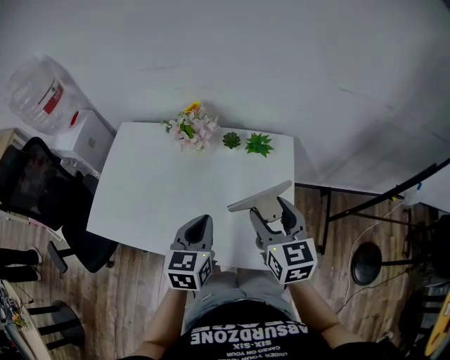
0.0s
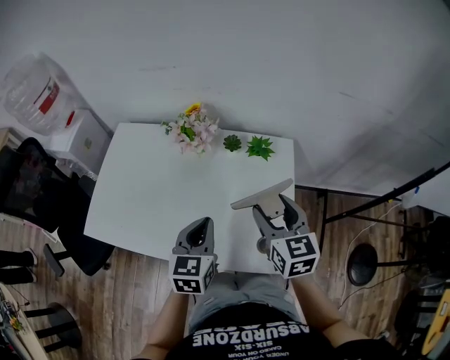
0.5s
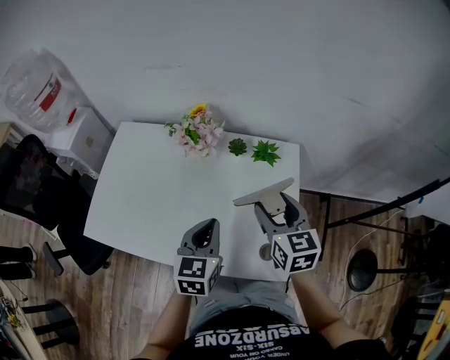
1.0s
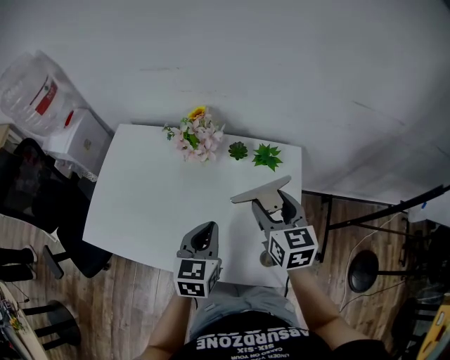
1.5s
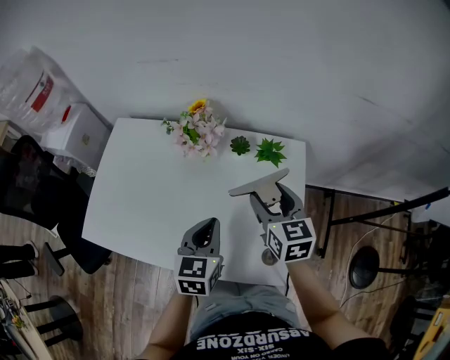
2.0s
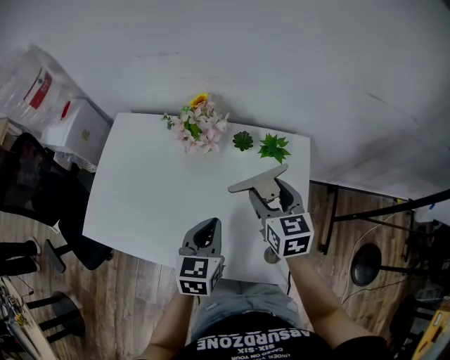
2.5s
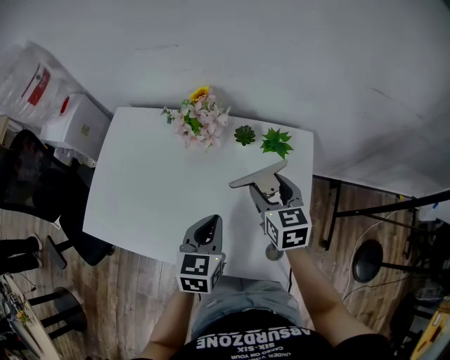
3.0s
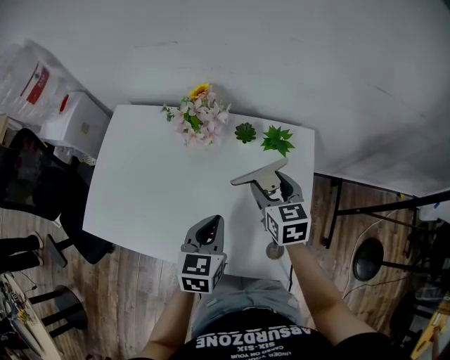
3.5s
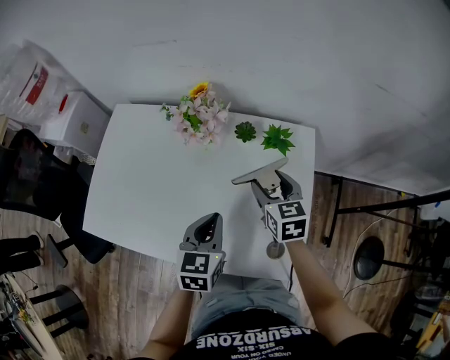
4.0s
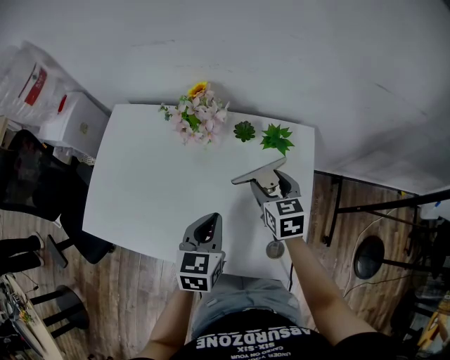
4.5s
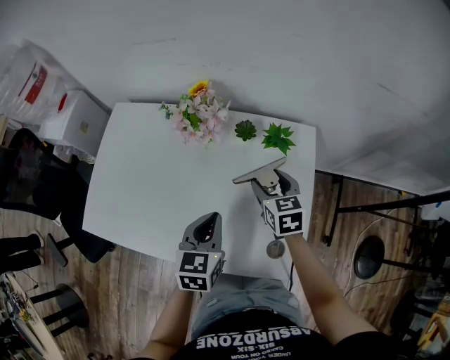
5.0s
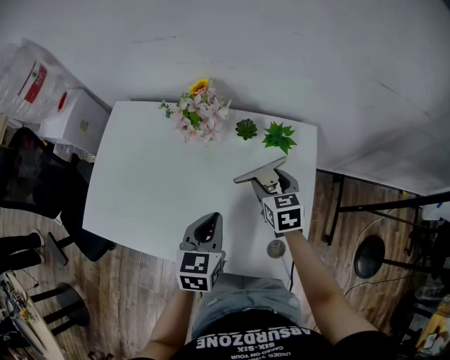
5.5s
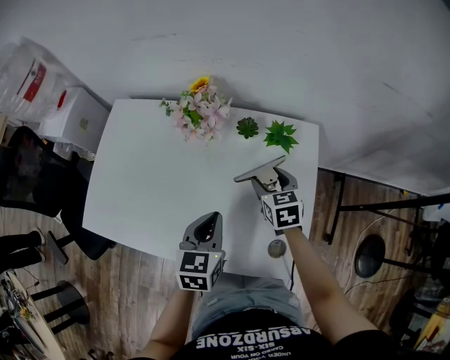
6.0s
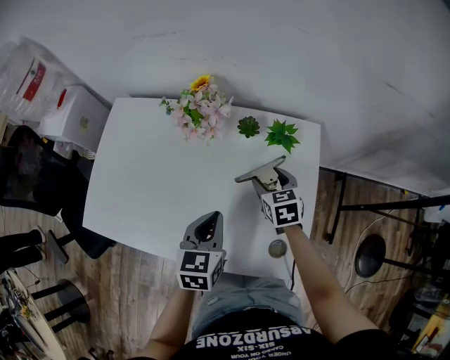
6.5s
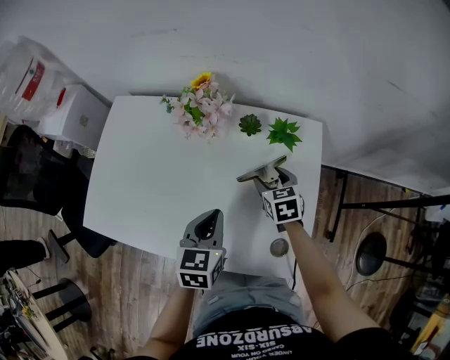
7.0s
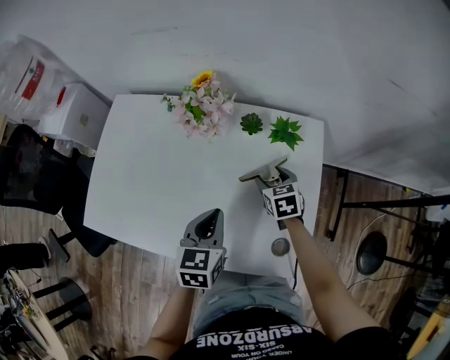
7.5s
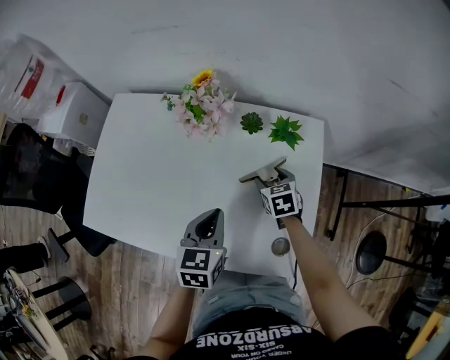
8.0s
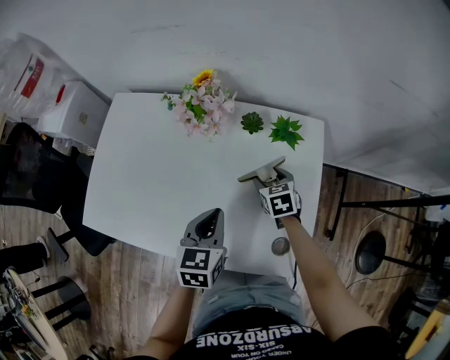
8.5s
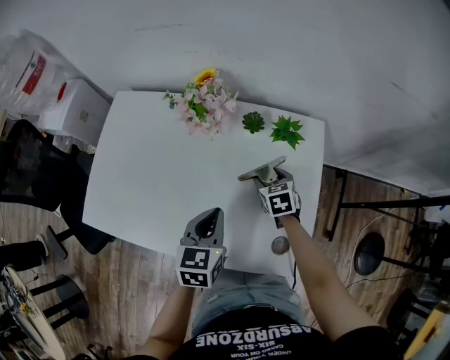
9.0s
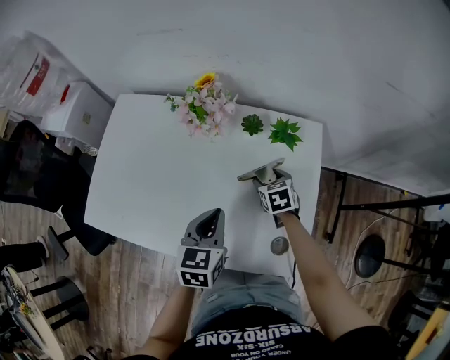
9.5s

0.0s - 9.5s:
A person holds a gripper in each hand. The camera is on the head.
0.0s - 2.0s: The left gripper goes roughly 5 cm forward. The right gripper travels forward and downward by roughly 15 cm.
2.0s - 4.0s: The right gripper travels downward by roughly 10 cm.
4.0s - 5.5s: There are only small adjustments of the grippers.
5.5s - 7.5s: The right gripper is displaced downward by about 10 cm.
7.5s - 9.5s: There are only small adjustments of the grippers.

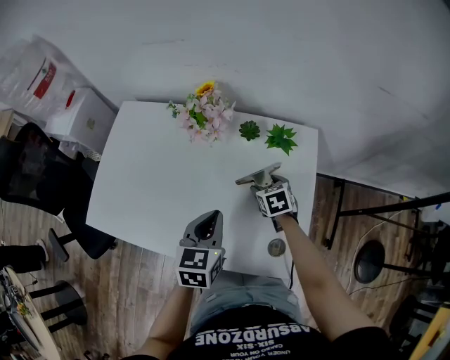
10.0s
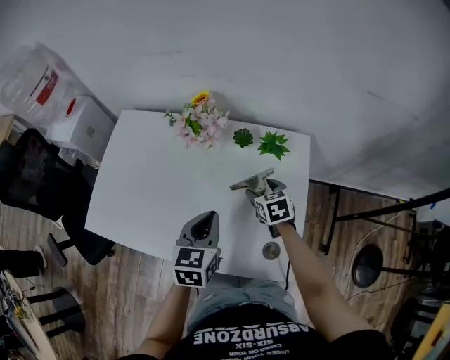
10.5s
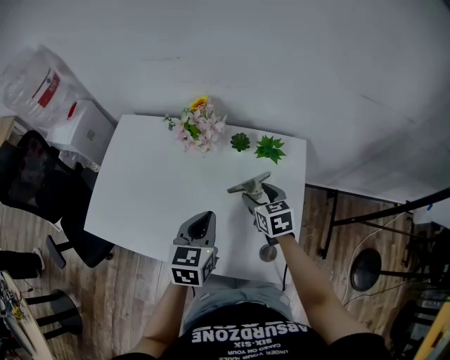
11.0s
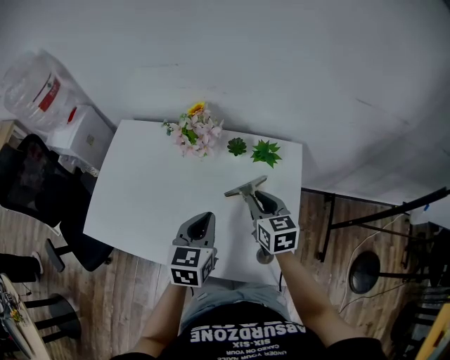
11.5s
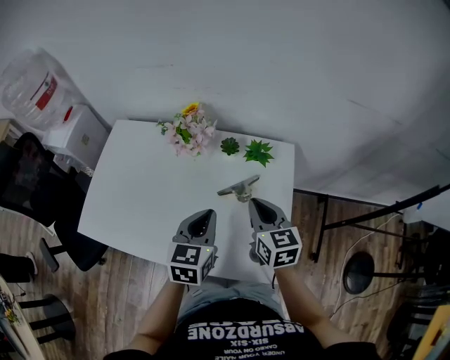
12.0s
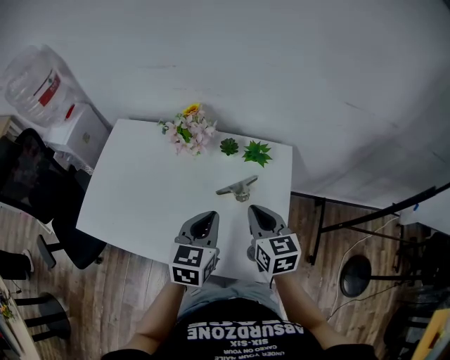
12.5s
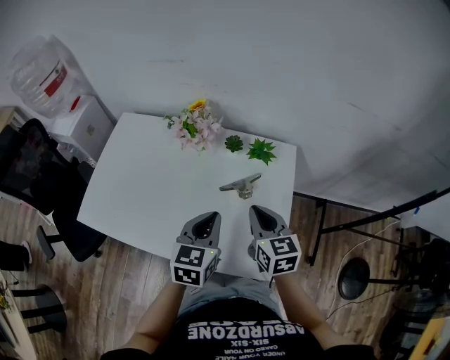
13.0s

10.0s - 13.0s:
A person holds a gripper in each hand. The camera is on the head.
10.0s - 11.5s: The right gripper moves upward, roughly 15 cm, rotates roughly 30 degrees, and closes up.
11.5s - 13.0s: The right gripper travels backward by approximately 10 cm. The left gripper changes place by approximately 5 cm.

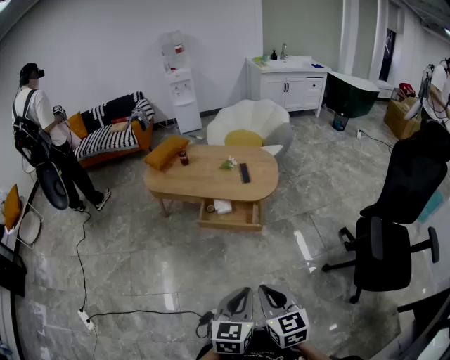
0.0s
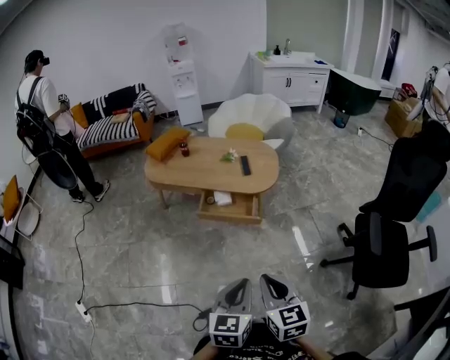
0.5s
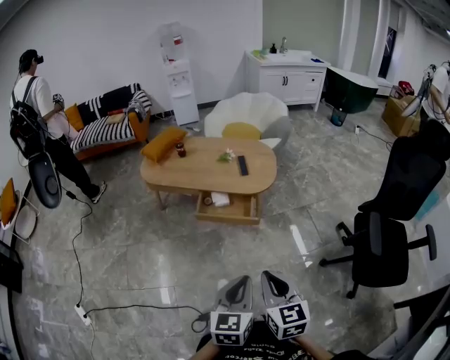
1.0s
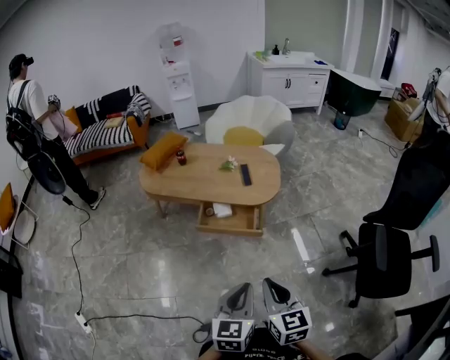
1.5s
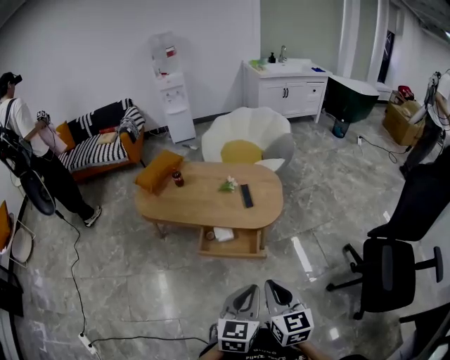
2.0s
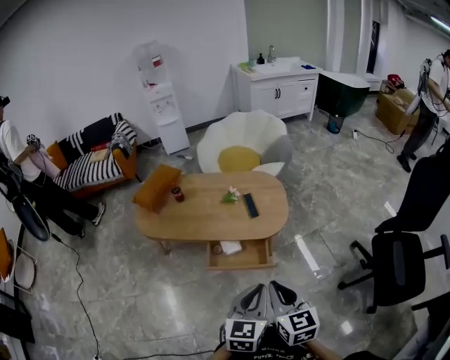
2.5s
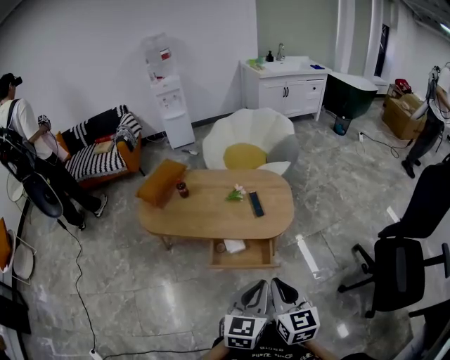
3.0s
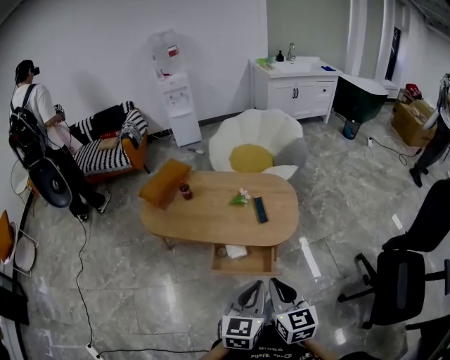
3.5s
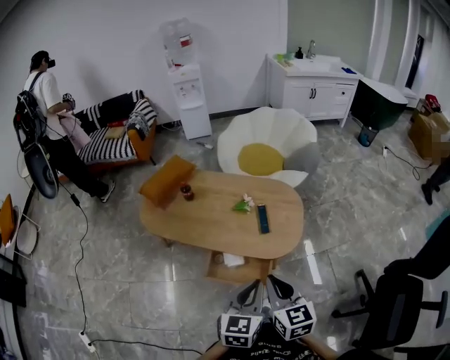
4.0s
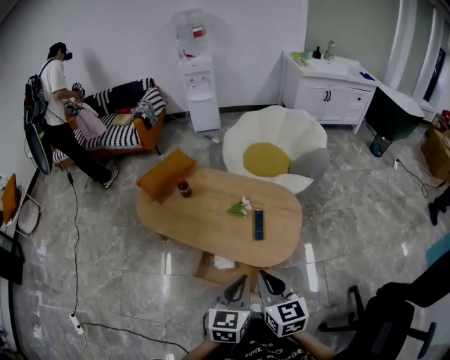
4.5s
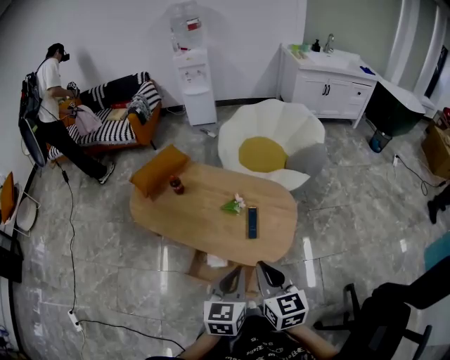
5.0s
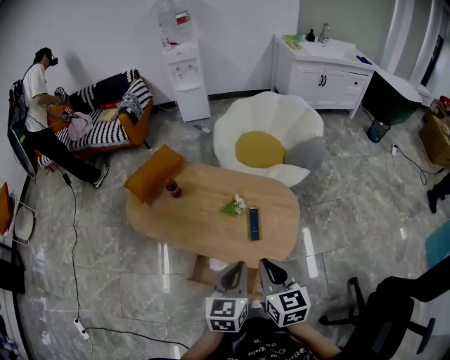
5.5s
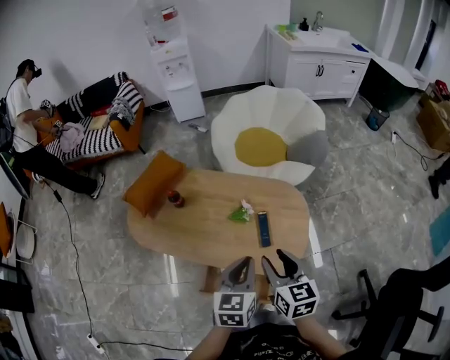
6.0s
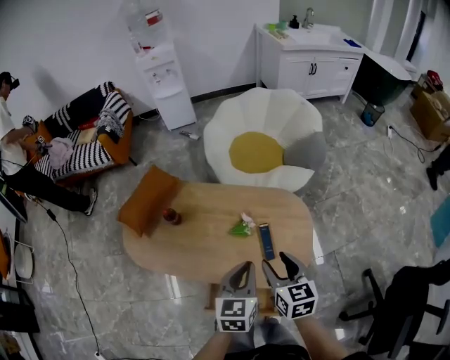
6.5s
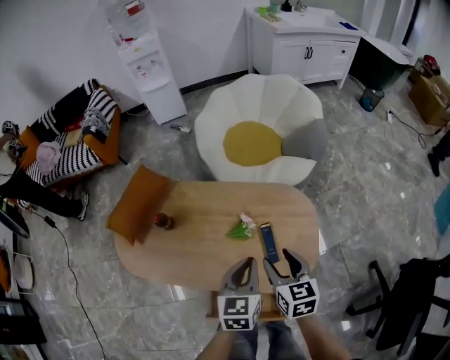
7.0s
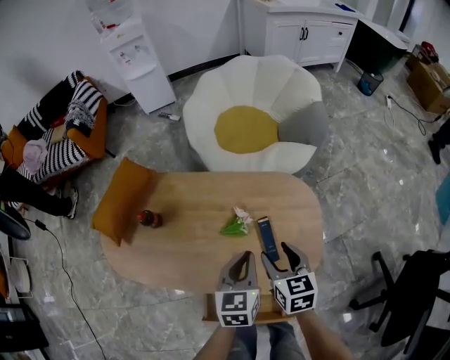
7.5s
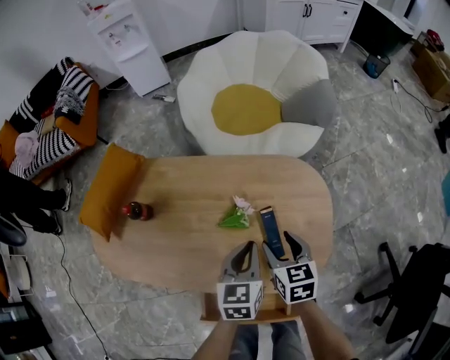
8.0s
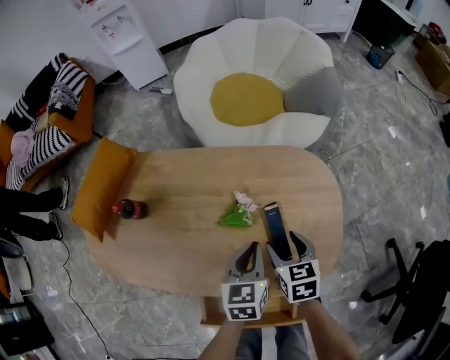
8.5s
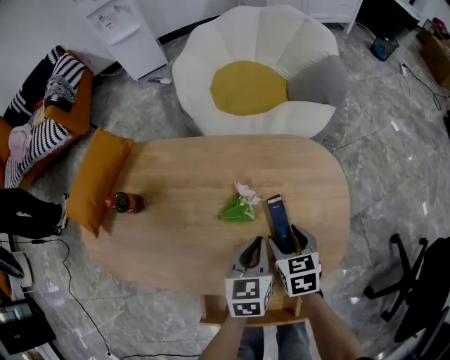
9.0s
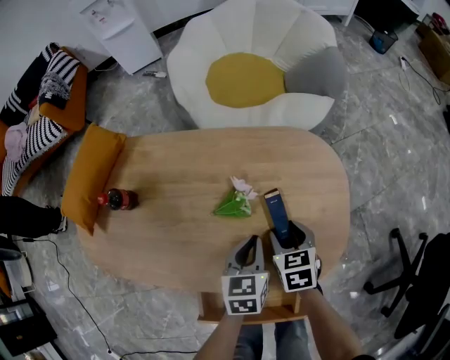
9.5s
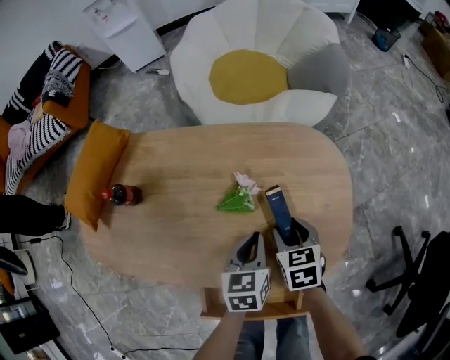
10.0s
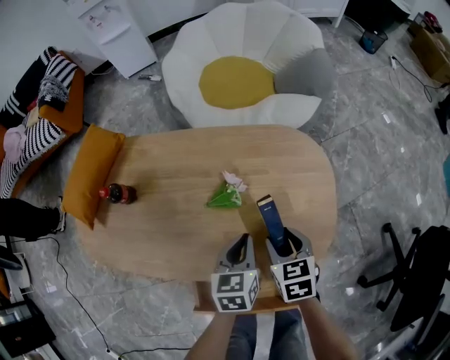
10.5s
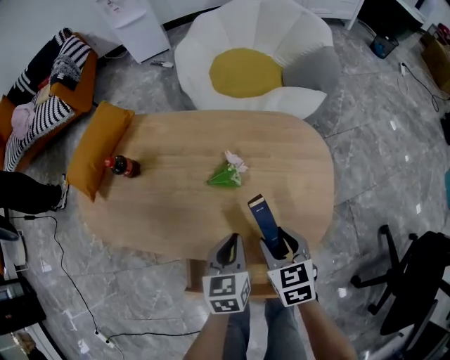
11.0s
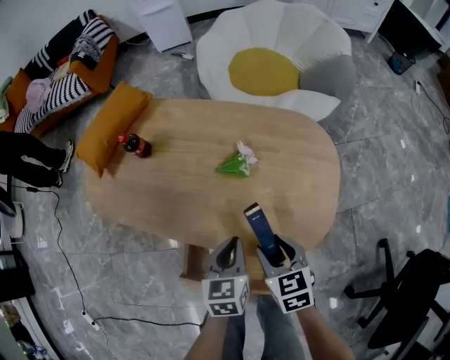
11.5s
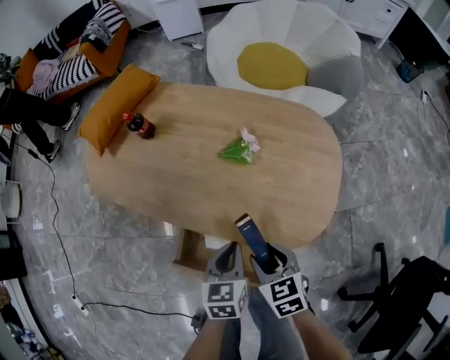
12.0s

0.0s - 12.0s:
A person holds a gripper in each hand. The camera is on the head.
0.0s - 2.0s: Both grippers move forward, about 20 cm.
2.0s - 4.0s: The grippers both shift forward by approximately 20 cm.
4.0s - 6.0s: Both grippers move forward, about 20 cm. The right gripper opens up.
6.0s - 8.0s: The two grippers go roughly 25 cm downward and forward.
8.0s - 10.0s: Both grippers travel together downward, approximately 10 cm.
10.0s - 12.0s: Both grippers travel together backward, some 20 cm. The right gripper rotates about 30 degrees.

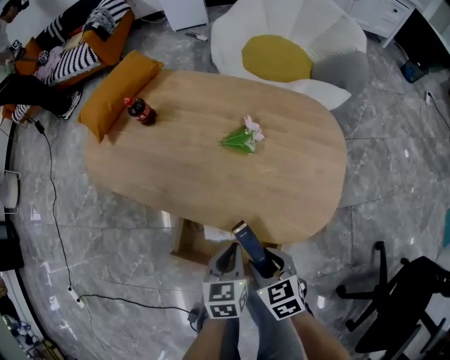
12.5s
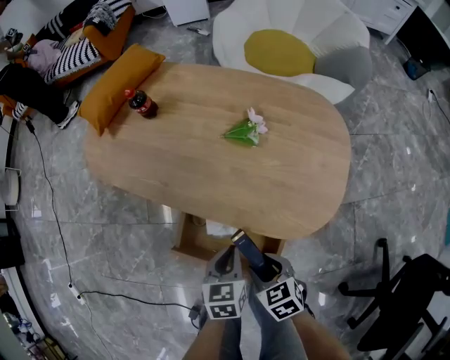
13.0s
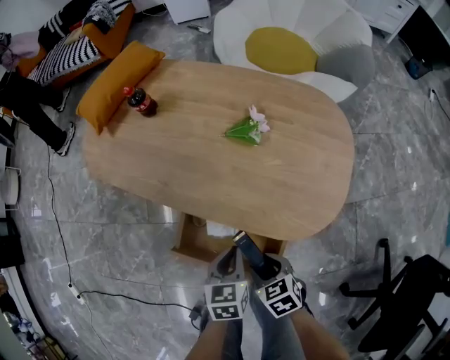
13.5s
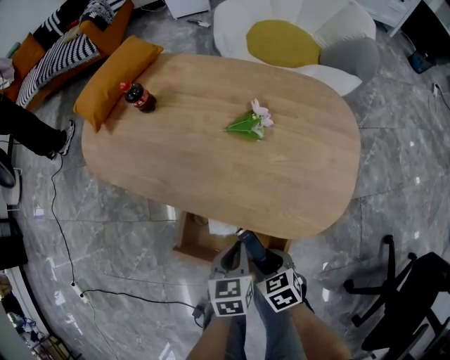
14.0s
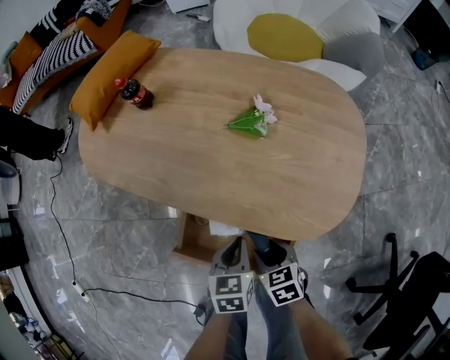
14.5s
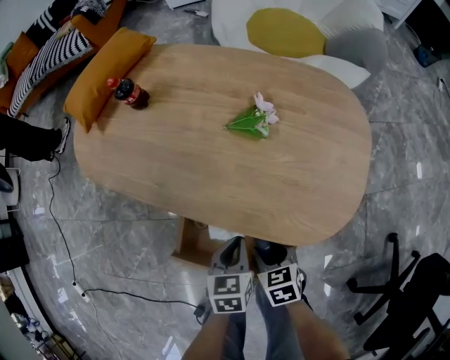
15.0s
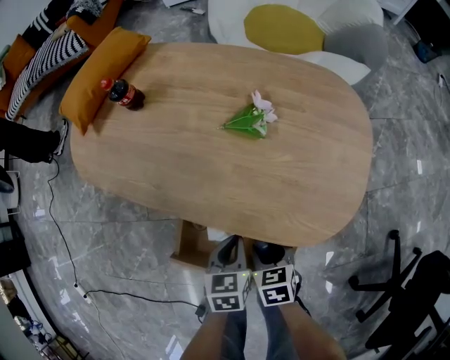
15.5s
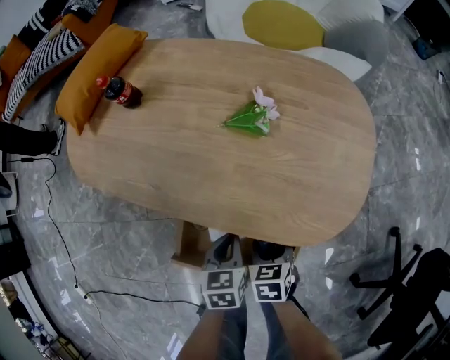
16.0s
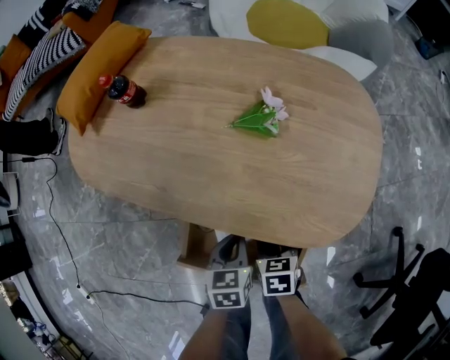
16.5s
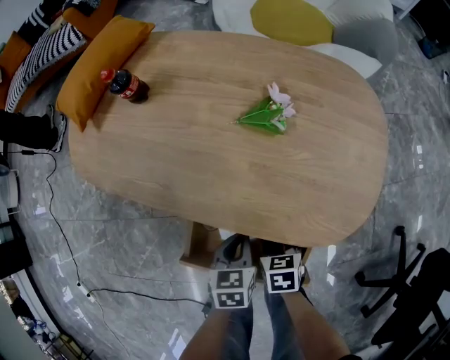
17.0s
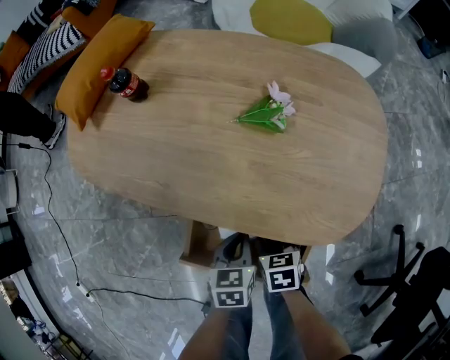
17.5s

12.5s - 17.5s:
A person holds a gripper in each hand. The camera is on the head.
12.5s - 15.0s: The two grippers go some 10 cm downward.
15.0s - 17.5s: The right gripper ends up about 5 cm from where it was.
